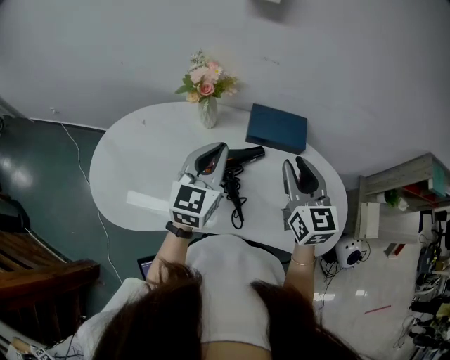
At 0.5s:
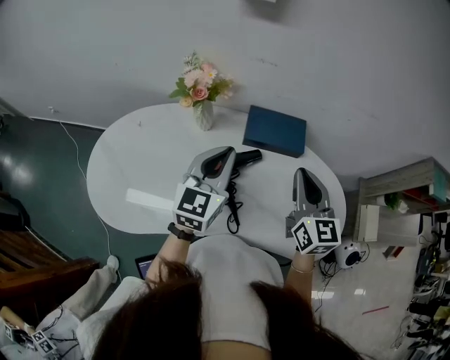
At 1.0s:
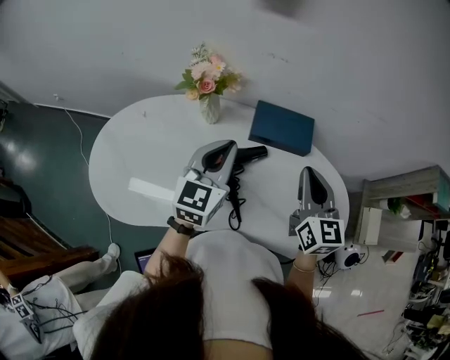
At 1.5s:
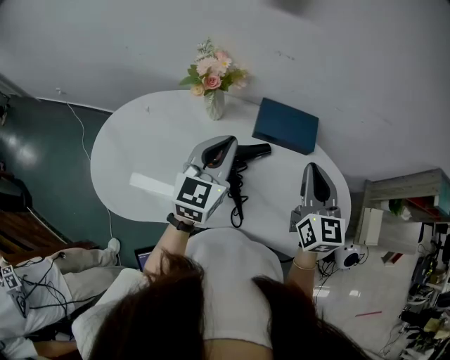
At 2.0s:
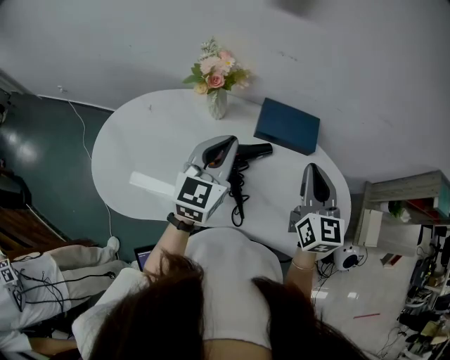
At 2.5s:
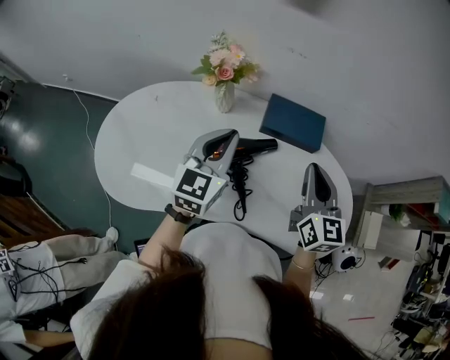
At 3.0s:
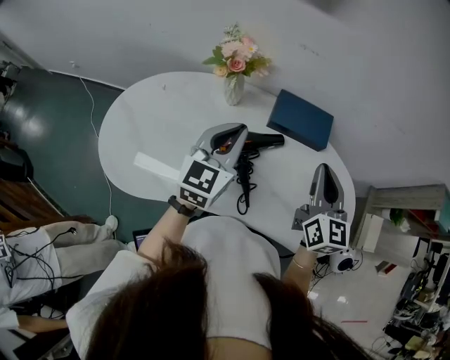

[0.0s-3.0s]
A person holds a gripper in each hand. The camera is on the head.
0.0s to 1.5s: The right gripper closes up.
1.5s to 3.0s: The grippers stay close to where they were, moving slightly.

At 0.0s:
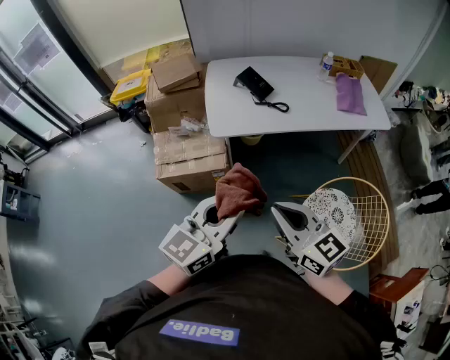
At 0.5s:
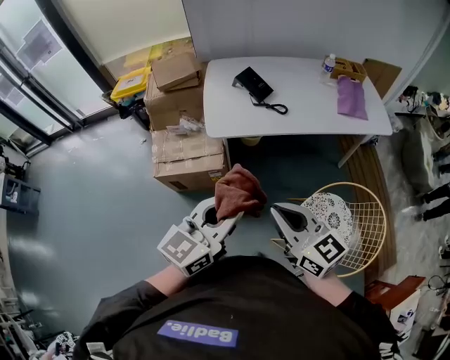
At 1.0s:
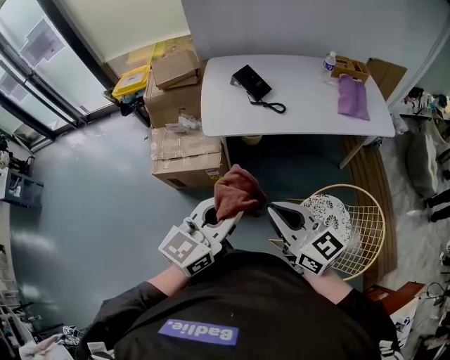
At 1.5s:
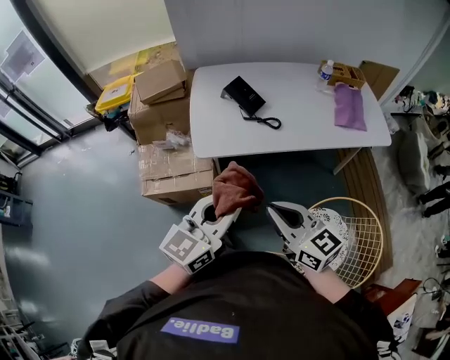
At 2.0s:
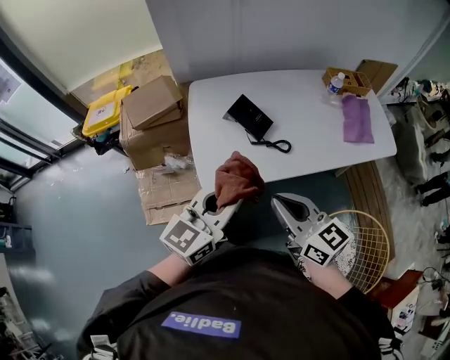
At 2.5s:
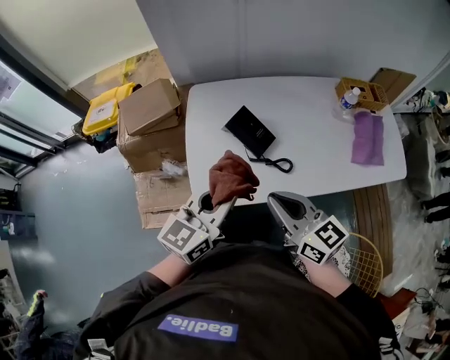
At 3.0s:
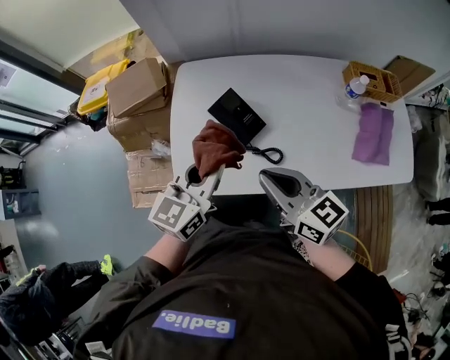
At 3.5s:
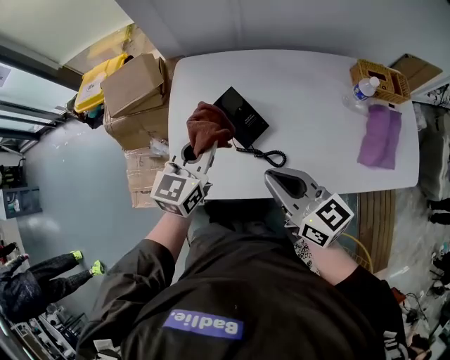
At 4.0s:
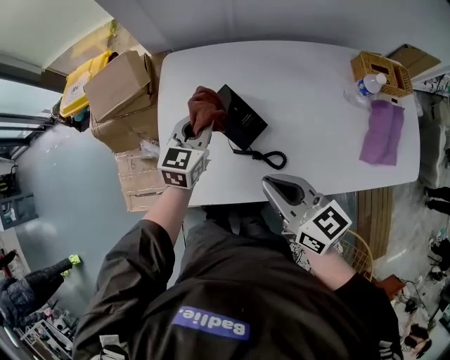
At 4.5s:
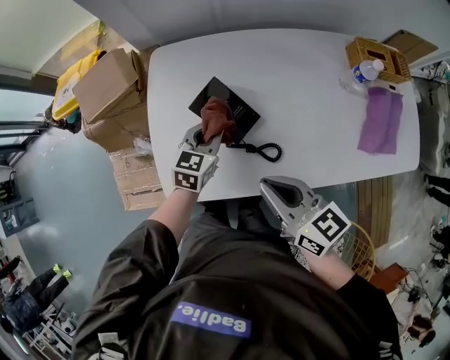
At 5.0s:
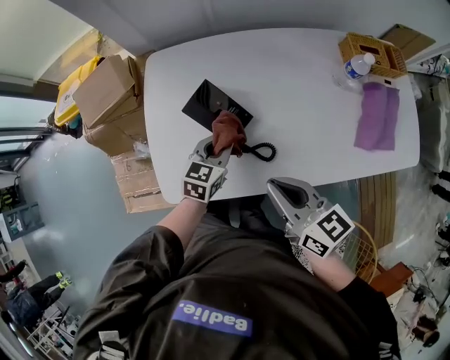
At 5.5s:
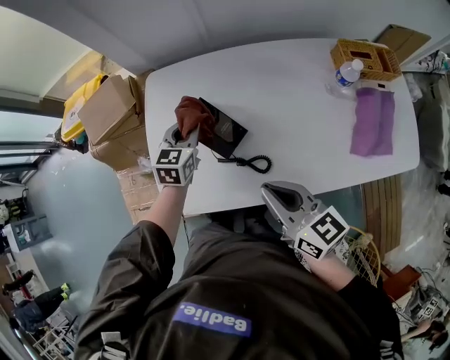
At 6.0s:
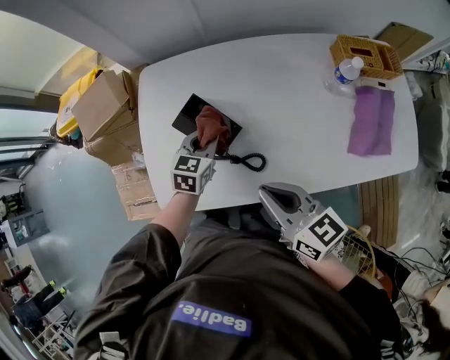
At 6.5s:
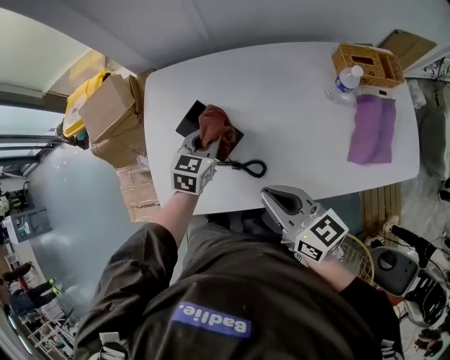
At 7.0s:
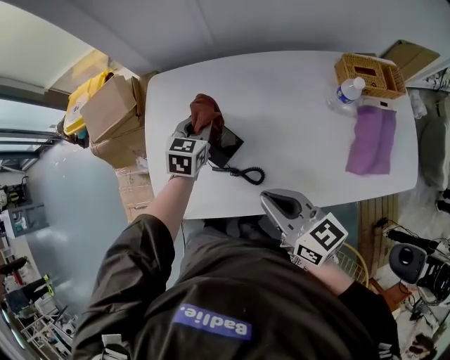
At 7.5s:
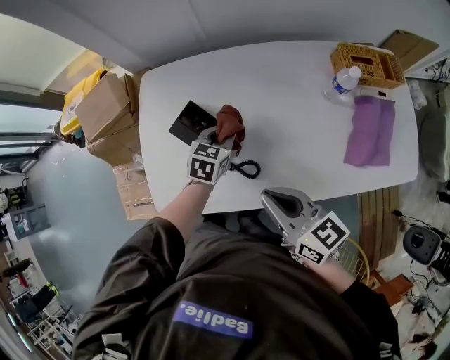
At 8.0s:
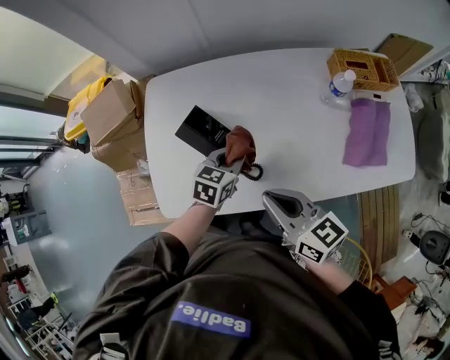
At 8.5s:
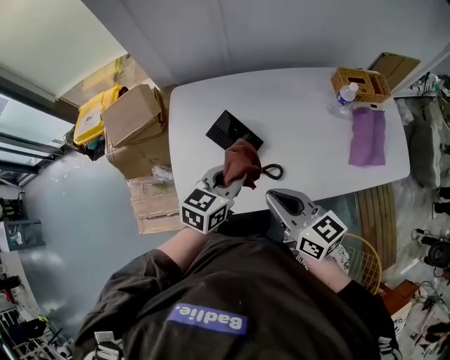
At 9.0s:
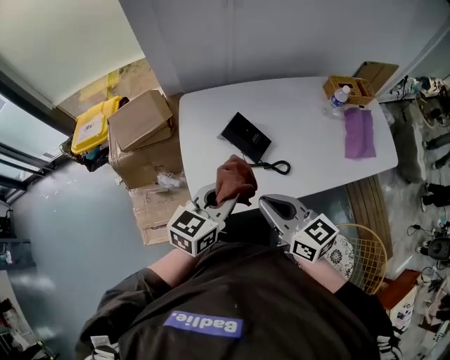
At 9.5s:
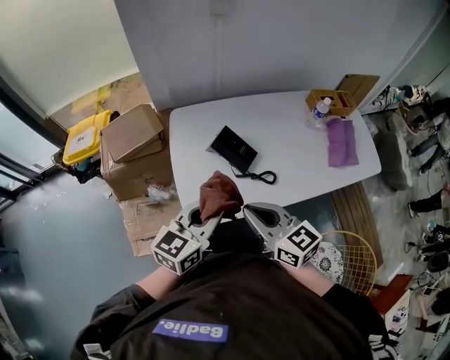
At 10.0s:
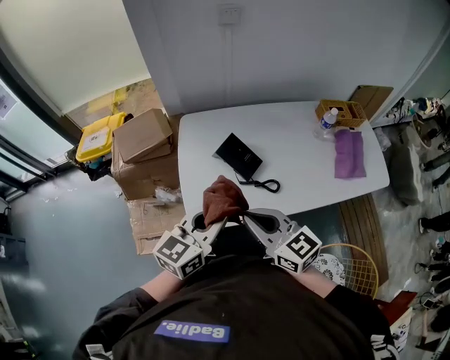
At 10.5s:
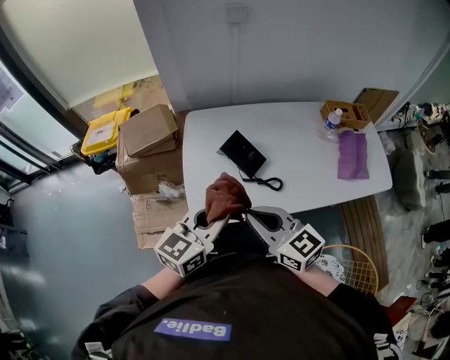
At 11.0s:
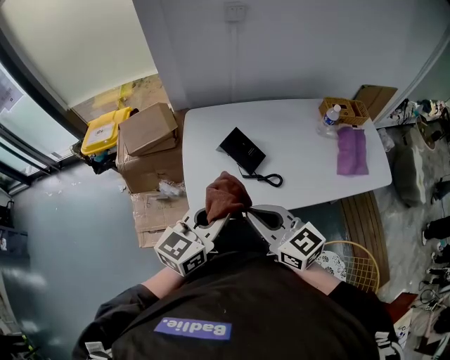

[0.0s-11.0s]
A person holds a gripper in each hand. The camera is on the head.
0.0s to 2.0s: Both grippers travel together forward, about 30 cm.
2.0s to 3.5s: The right gripper travels forward and to the right by roughly 20 cm. Meanwhile the left gripper moves forward and downward, about 30 cm, and changes its angle by some 30 degrees.
3.5s to 5.5s: The left gripper is displaced downward and forward by roughly 15 cm; the right gripper ends up about 5 cm from where it was.
5.5s to 7.5s: The left gripper moves to the right and downward, some 15 cm.
7.5s to 9.0s: The left gripper moves upward, backward and to the left, some 35 cm, and changes its angle by approximately 30 degrees; the right gripper moves to the left and backward, about 20 cm.
9.0s to 11.0s: The left gripper is displaced backward and upward by some 10 cm. The right gripper ends up some 5 cm from where it was.

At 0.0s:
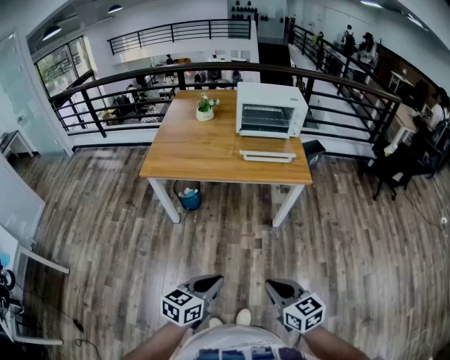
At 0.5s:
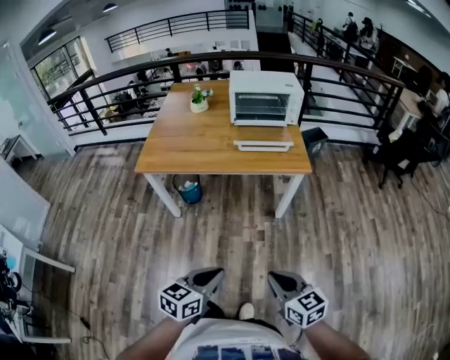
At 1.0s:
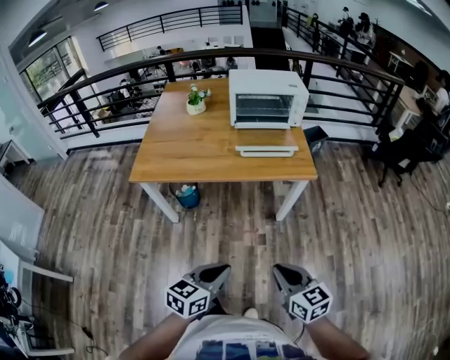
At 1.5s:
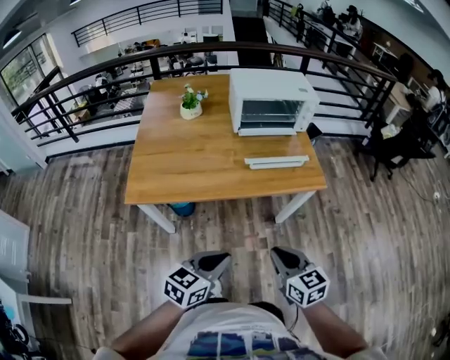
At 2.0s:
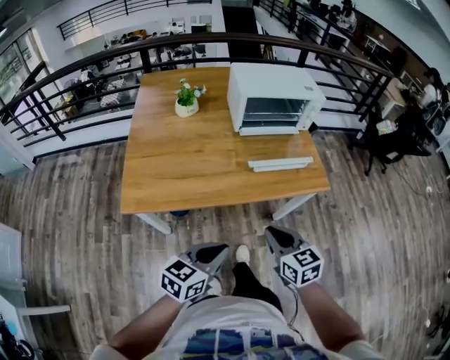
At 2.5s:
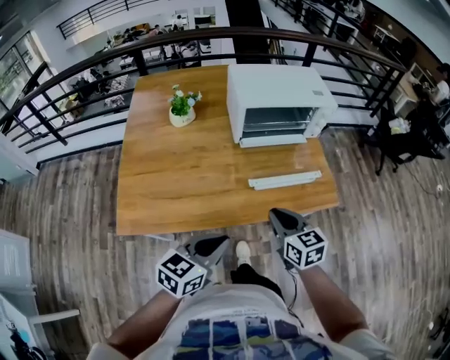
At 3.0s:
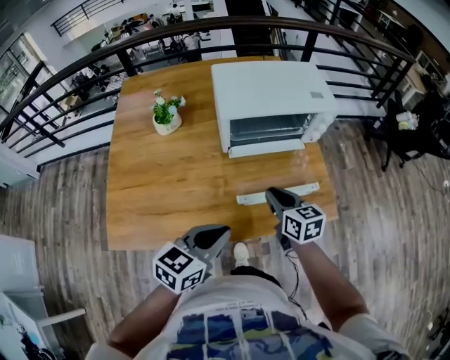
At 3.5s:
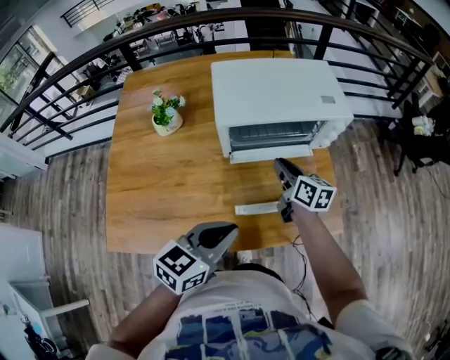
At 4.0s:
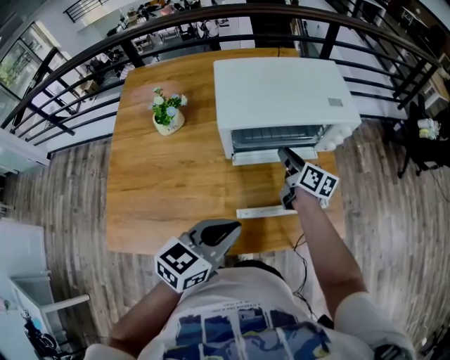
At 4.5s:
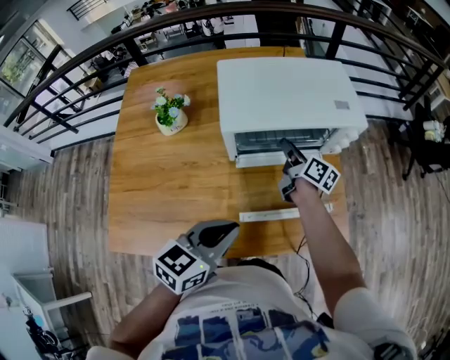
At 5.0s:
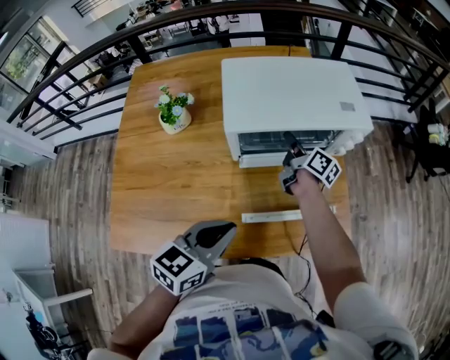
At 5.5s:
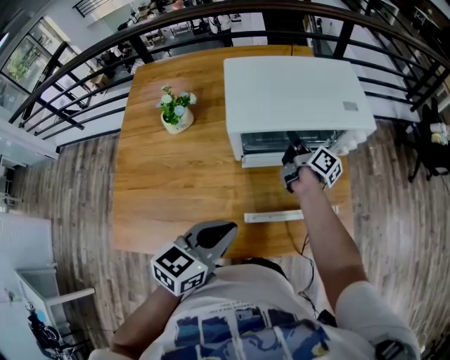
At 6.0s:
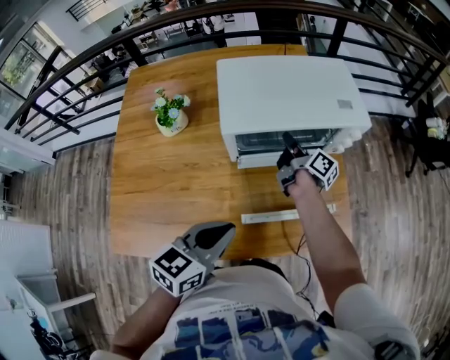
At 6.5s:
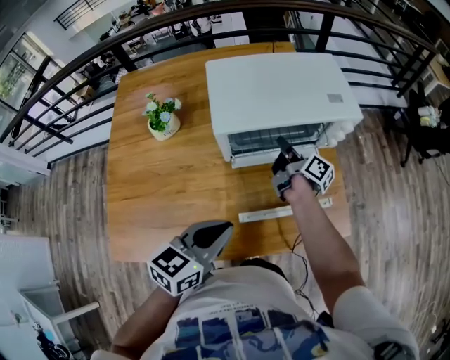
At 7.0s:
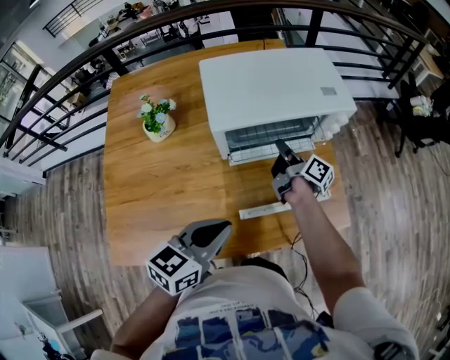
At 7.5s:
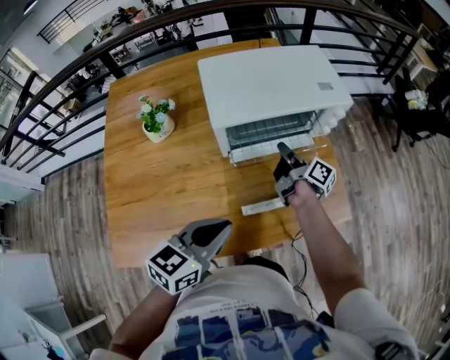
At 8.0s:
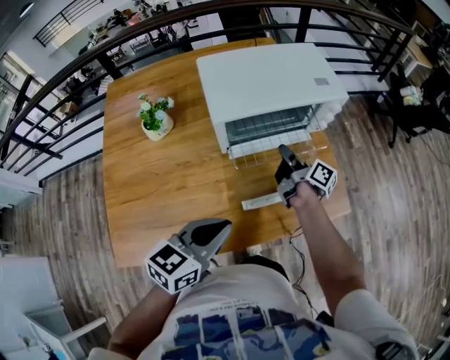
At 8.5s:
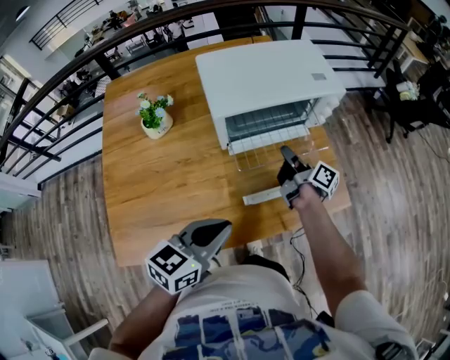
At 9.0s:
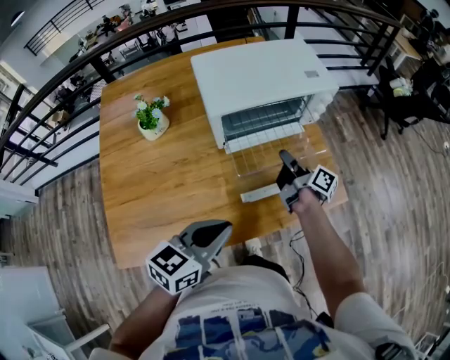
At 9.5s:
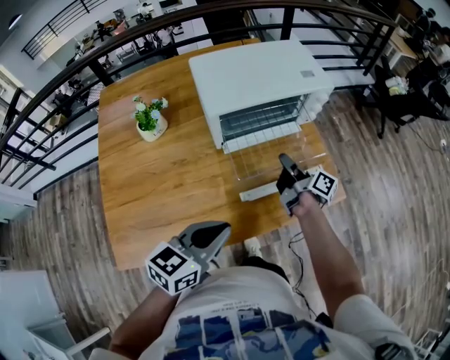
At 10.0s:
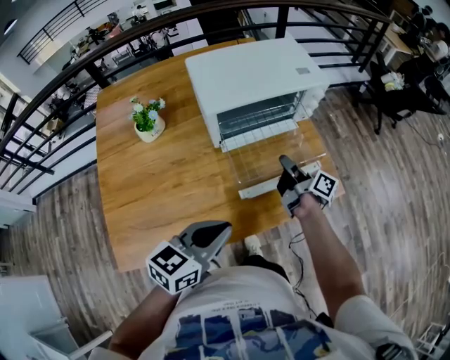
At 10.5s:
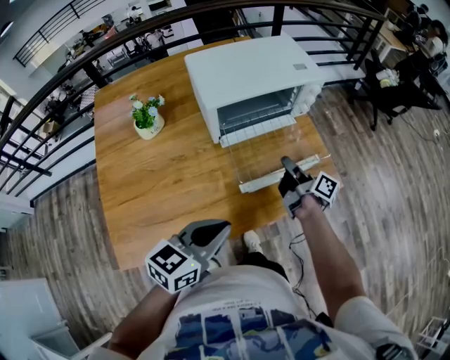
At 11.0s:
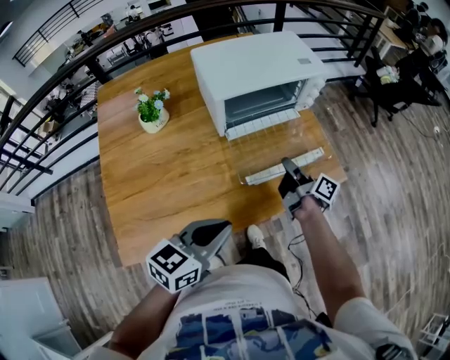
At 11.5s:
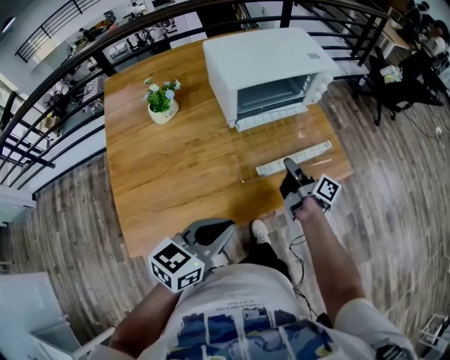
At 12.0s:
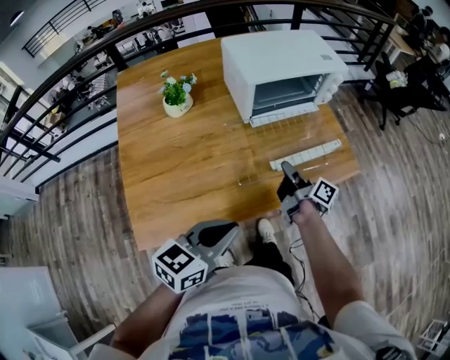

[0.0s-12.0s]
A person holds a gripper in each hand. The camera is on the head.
0.0s to 2.0s: The left gripper changes place by some 40 cm.
2.0s to 4.0s: The left gripper ends up some 40 cm from where it was.
10.0s to 12.0s: The left gripper shifts by approximately 15 cm.

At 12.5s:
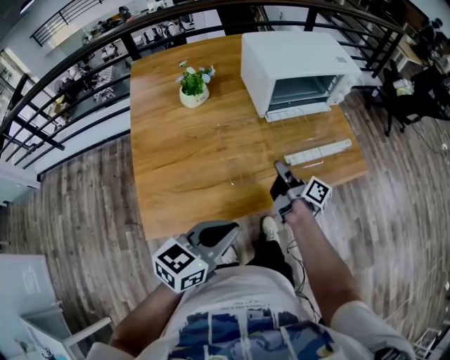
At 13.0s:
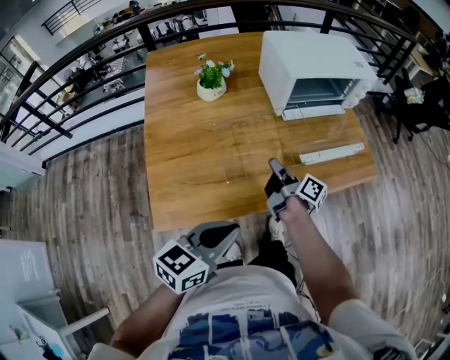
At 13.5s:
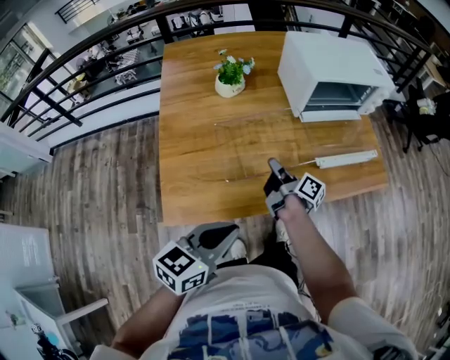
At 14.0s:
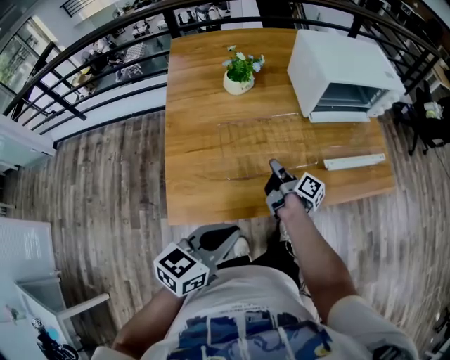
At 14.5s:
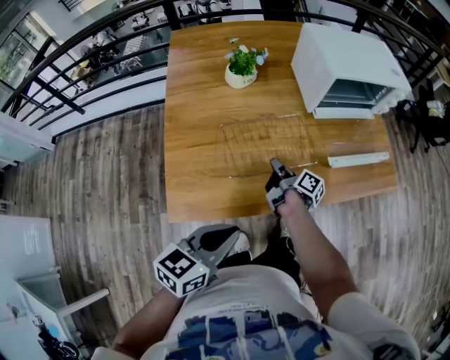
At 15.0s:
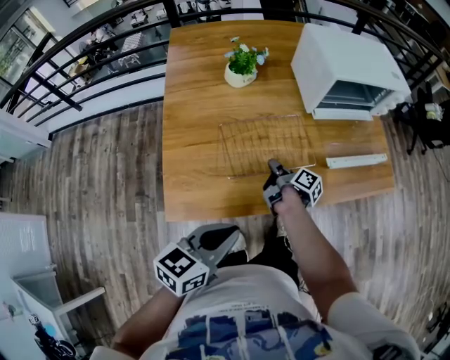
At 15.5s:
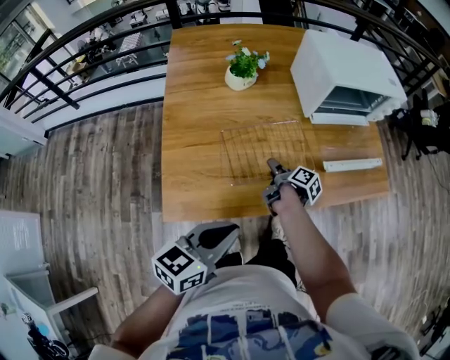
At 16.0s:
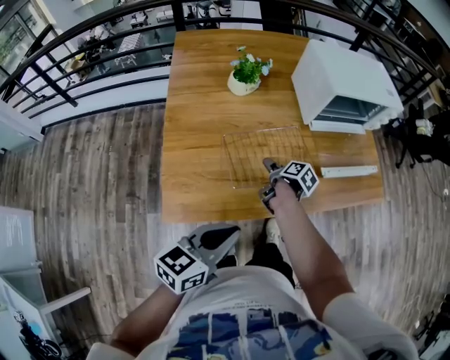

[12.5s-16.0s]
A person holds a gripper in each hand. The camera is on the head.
12.5s to 14.5s: The left gripper shifts by roughly 10 cm.
